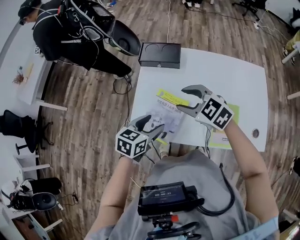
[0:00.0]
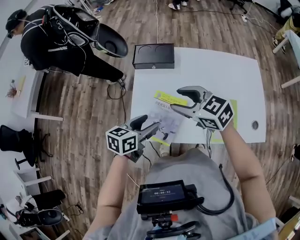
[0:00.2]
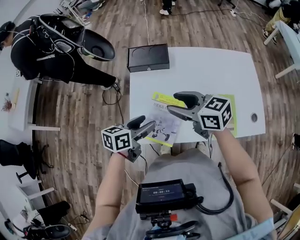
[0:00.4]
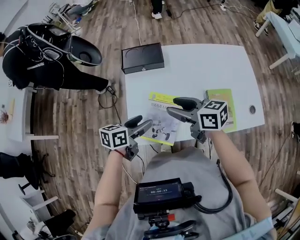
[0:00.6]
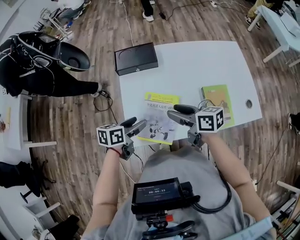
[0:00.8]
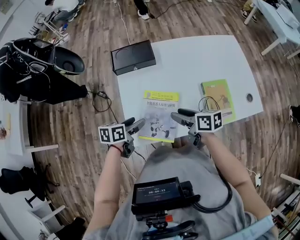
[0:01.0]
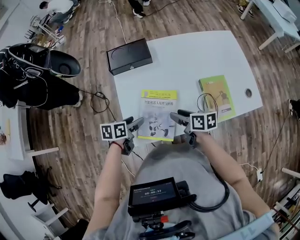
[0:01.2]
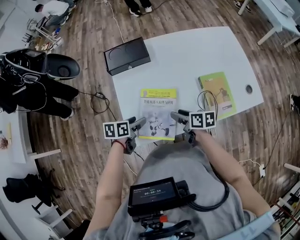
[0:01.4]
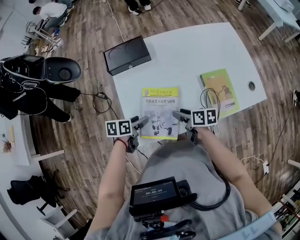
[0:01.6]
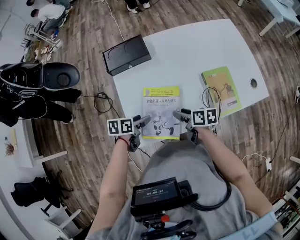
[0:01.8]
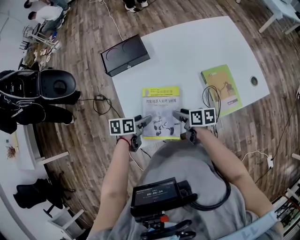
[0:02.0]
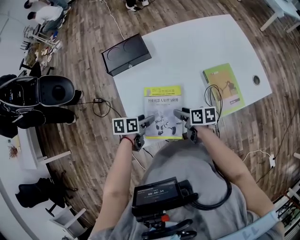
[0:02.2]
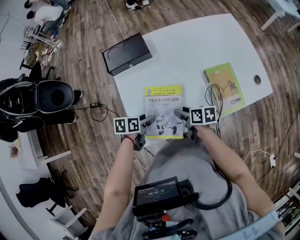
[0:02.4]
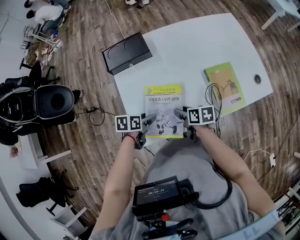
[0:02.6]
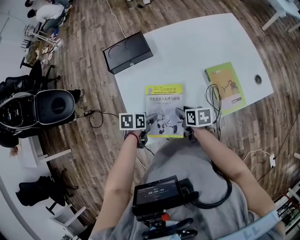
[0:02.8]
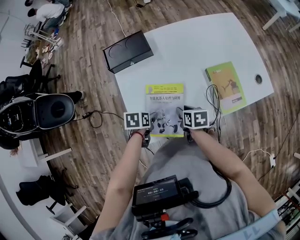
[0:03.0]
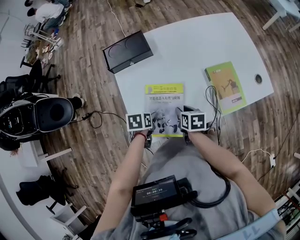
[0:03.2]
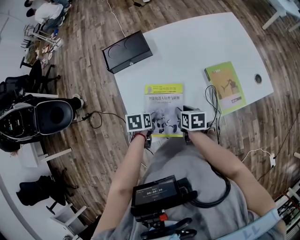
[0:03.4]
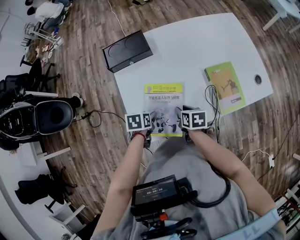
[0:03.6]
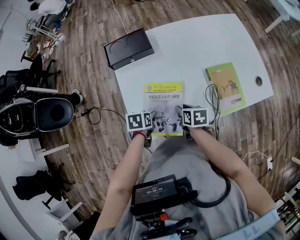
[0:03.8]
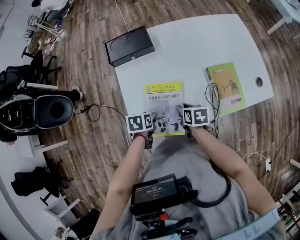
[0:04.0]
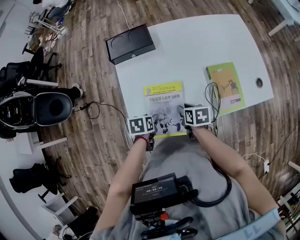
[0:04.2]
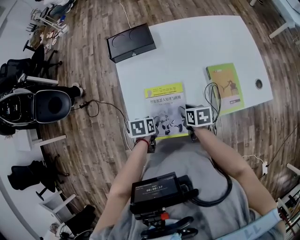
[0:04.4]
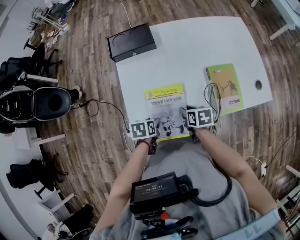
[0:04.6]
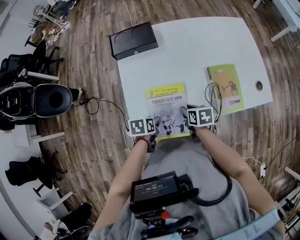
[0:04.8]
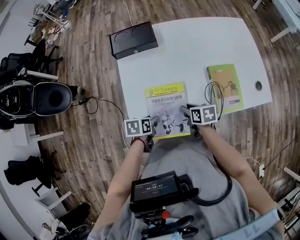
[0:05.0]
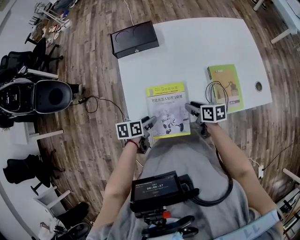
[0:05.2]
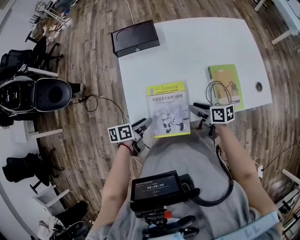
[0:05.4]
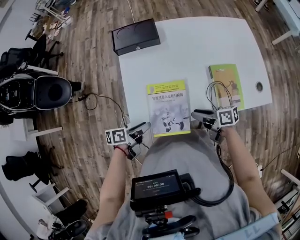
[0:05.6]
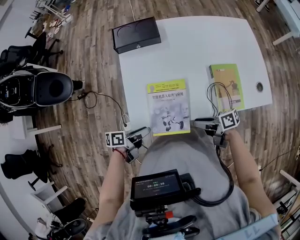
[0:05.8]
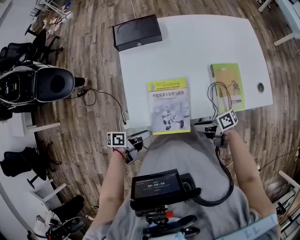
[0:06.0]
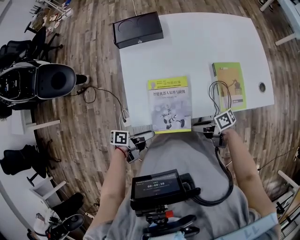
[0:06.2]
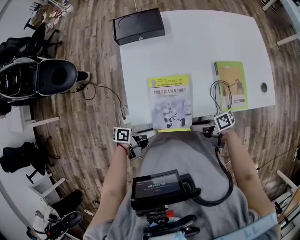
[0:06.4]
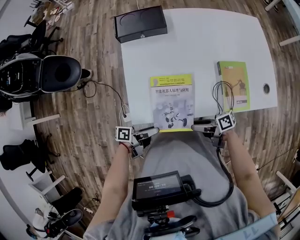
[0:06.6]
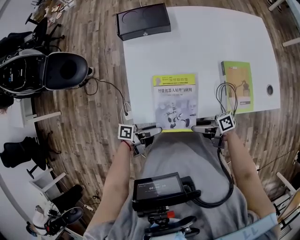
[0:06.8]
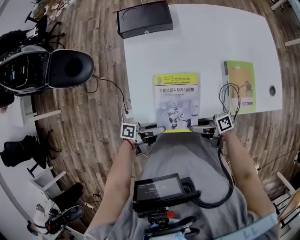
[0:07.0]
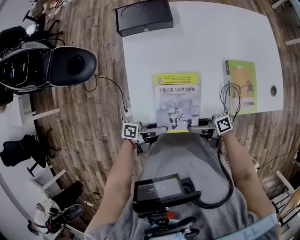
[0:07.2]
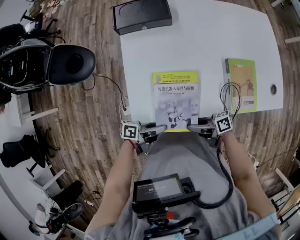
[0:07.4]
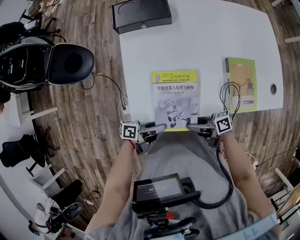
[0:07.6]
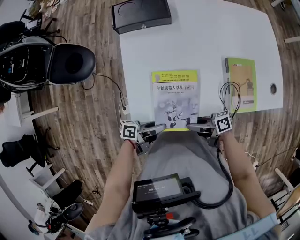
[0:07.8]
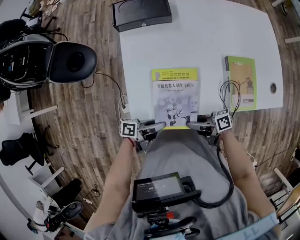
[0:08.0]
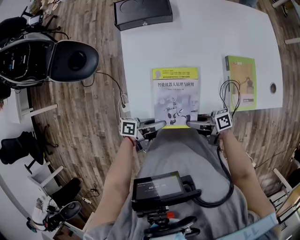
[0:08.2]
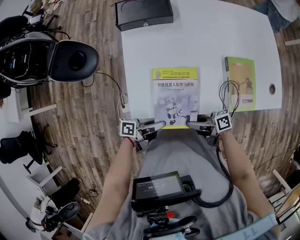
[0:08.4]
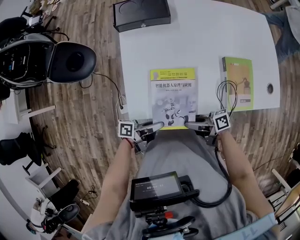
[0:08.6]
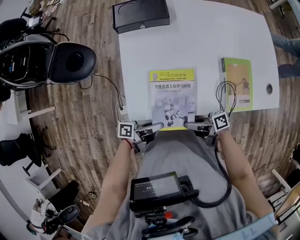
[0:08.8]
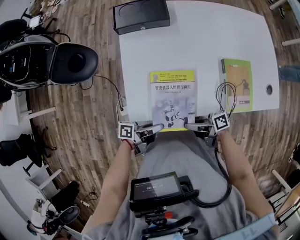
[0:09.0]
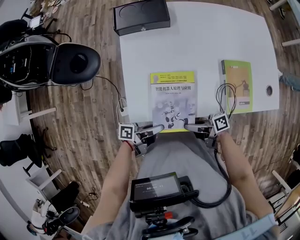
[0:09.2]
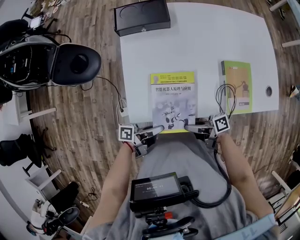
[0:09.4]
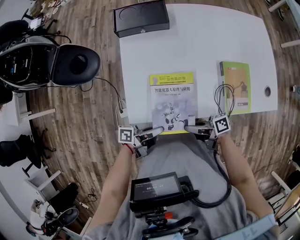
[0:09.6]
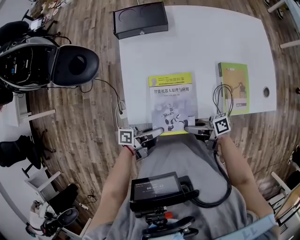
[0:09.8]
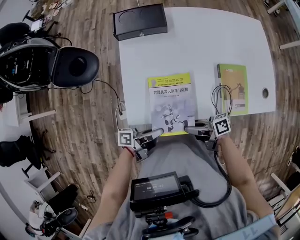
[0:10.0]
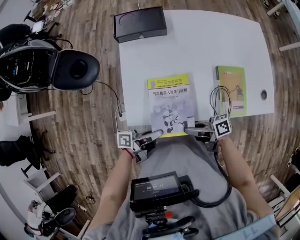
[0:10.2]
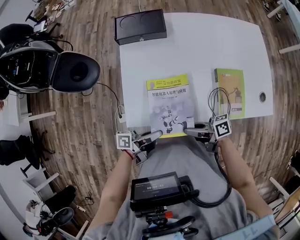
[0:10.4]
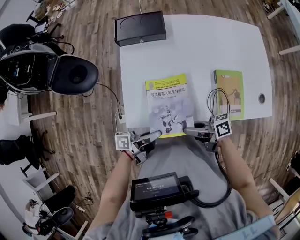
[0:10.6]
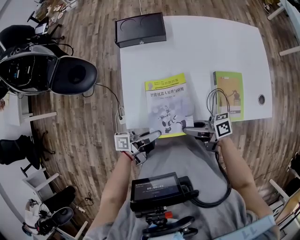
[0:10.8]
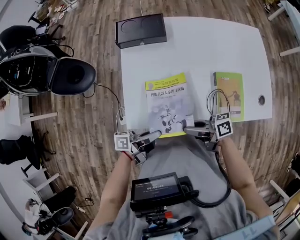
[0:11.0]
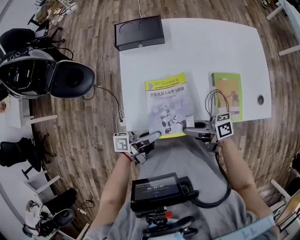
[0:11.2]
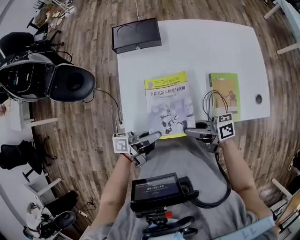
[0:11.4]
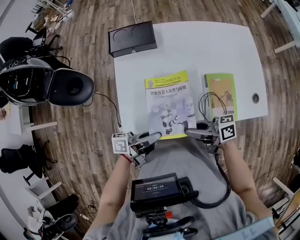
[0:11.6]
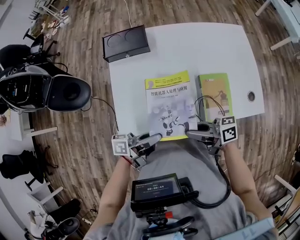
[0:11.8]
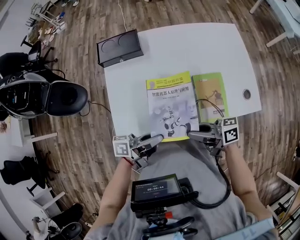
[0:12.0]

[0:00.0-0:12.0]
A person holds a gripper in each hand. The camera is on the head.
0:00.0 to 0:01.6: The grippers both shift downward by about 15 cm. The left gripper rotates approximately 30 degrees. Meanwhile the right gripper rolls clockwise, seen from behind, by some 90 degrees.
0:01.6 to 0:03.0: The left gripper turns by some 20 degrees; the right gripper rotates about 20 degrees.
0:03.0 to 0:04.4: The left gripper is displaced backward by some 5 cm.
0:04.4 to 0:06.0: The right gripper changes place by roughly 10 cm, and angles its fingers upward, by about 40 degrees. Meanwhile the left gripper ends up roughly 10 cm from where it was, and tips its fingers upward by some 40 degrees.
0:06.0 to 0:07.6: The right gripper changes place by approximately 10 cm. The left gripper moves some 5 cm.
0:07.6 to 0:09.0: The grippers stay close to where they were, moving slightly.
0:09.0 to 0:10.4: The grippers both shift upward by about 5 cm.
0:10.4 to 0:12.0: Both grippers move upward, approximately 10 cm.

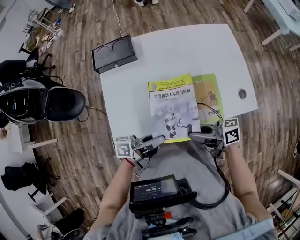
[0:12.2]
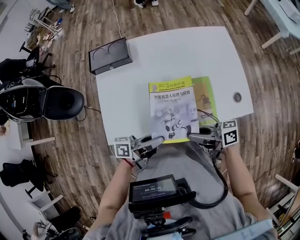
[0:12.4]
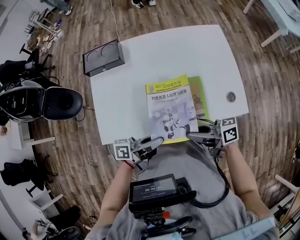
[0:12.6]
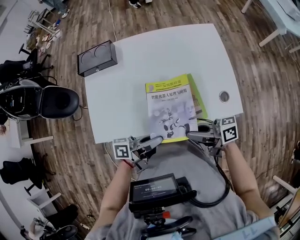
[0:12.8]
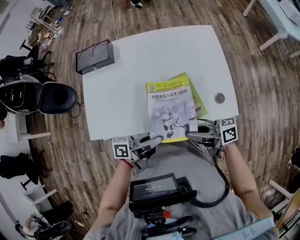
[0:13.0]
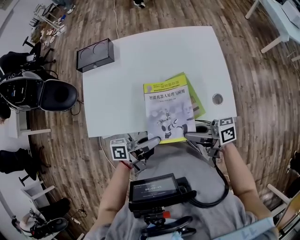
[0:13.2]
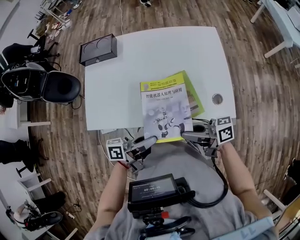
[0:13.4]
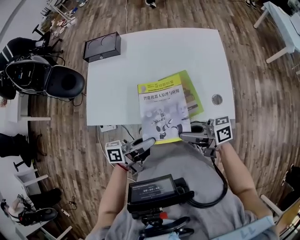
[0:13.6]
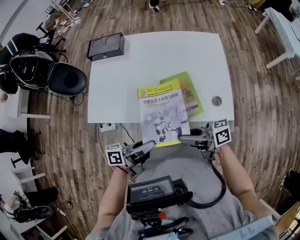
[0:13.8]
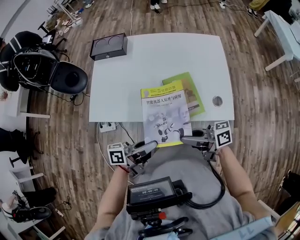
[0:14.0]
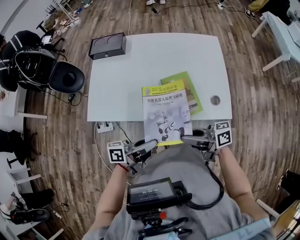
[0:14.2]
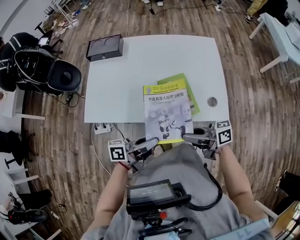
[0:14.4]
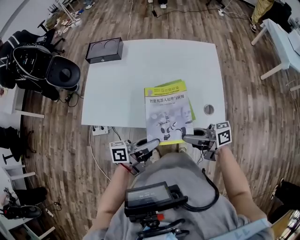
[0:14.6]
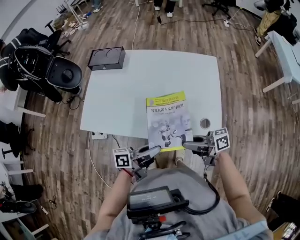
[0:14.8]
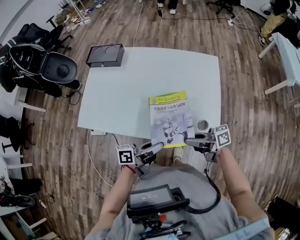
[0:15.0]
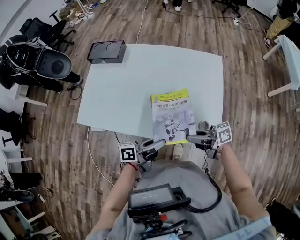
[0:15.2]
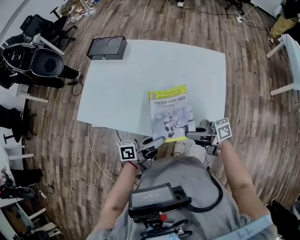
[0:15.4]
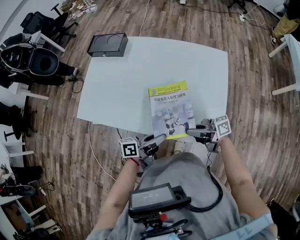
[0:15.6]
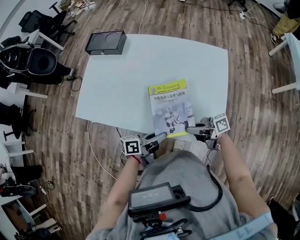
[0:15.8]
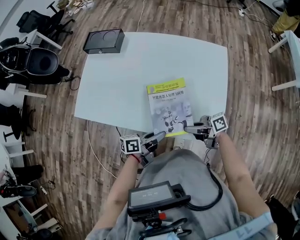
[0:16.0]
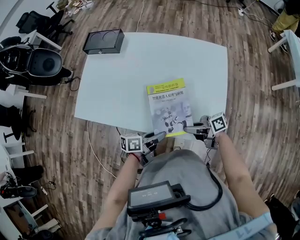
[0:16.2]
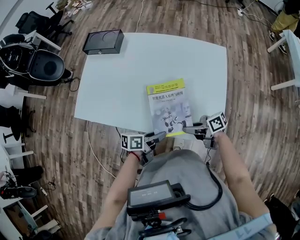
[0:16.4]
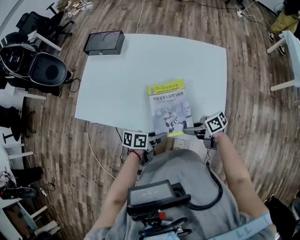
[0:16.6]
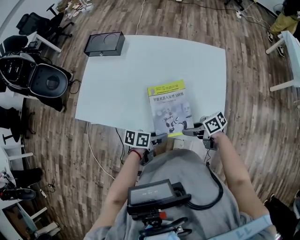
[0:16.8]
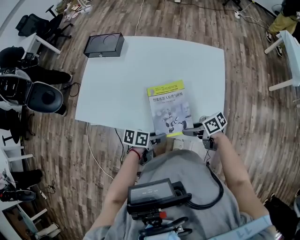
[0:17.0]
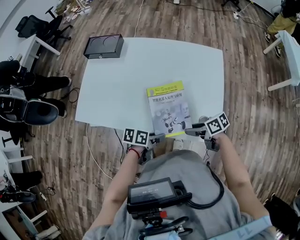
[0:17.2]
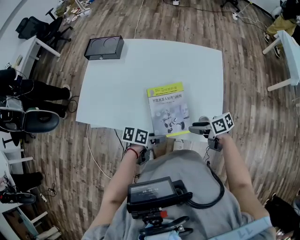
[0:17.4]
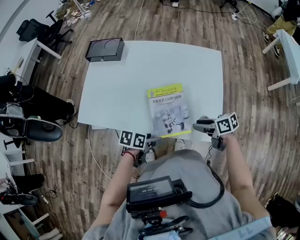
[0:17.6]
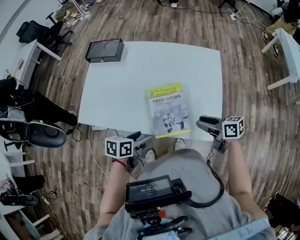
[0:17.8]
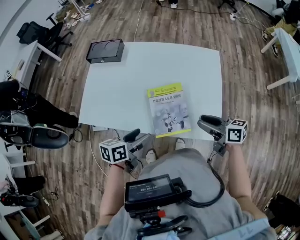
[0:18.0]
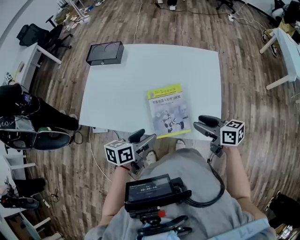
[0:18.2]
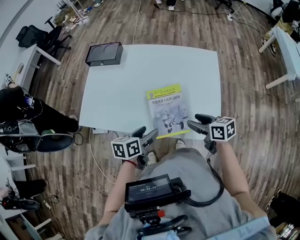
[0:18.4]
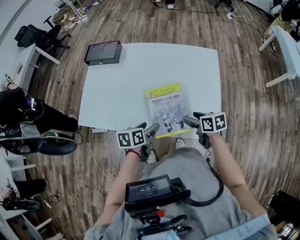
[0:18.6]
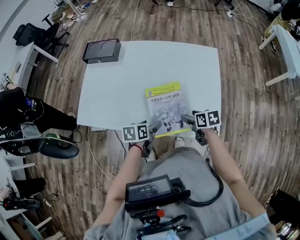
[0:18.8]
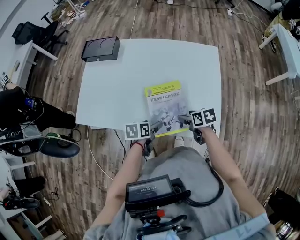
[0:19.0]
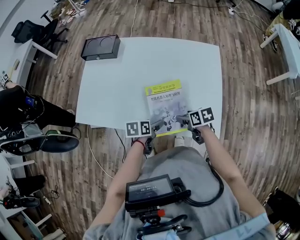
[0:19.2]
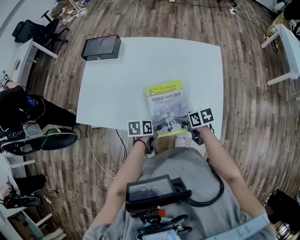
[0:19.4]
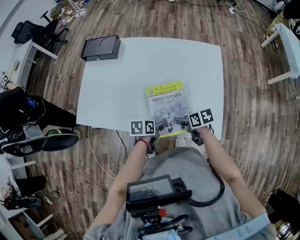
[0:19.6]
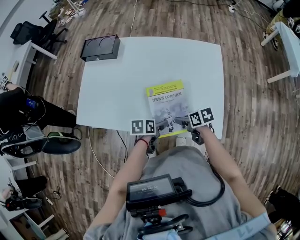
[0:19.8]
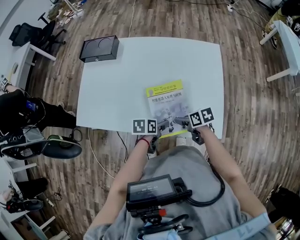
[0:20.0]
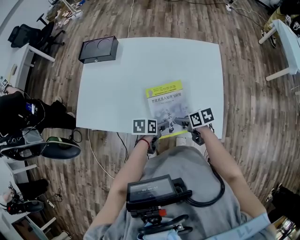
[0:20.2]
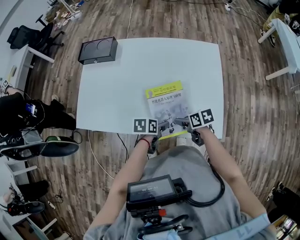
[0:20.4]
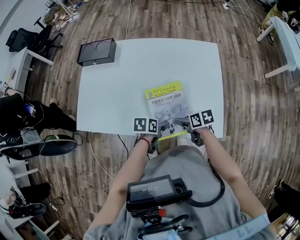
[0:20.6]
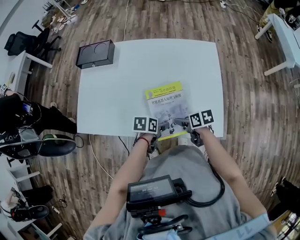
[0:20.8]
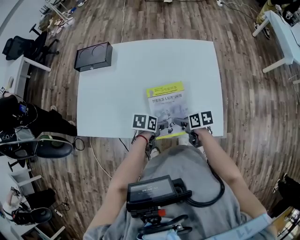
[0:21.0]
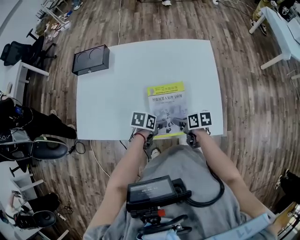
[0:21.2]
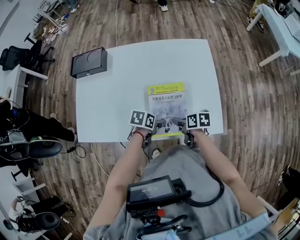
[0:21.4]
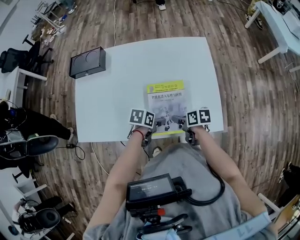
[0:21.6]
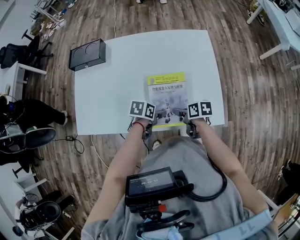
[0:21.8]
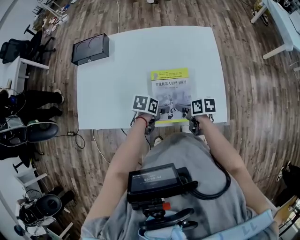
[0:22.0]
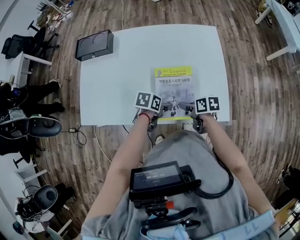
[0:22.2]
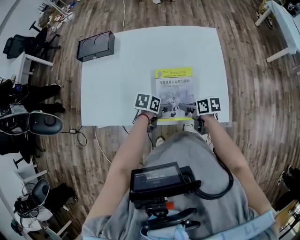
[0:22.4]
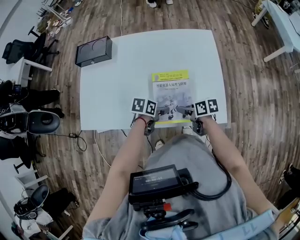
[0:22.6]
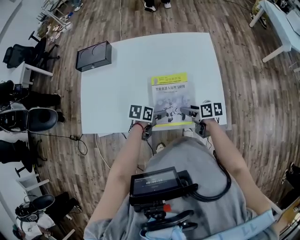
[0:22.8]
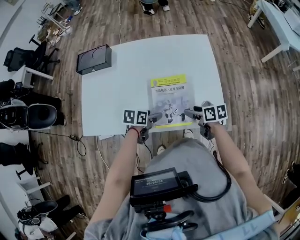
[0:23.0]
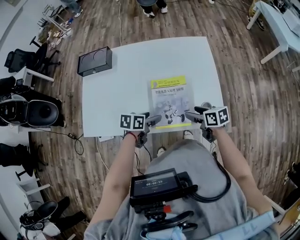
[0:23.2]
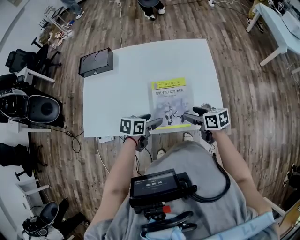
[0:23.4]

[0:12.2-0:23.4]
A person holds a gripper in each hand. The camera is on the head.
0:12.2 to 0:13.8: The left gripper shifts by approximately 20 cm. Meanwhile the right gripper ends up about 15 cm from where it was.
0:13.8 to 0:15.4: The right gripper moves approximately 15 cm, while the left gripper changes place by about 15 cm.
0:15.4 to 0:17.0: Both grippers travel together downward, some 10 cm. The right gripper tilts its fingers approximately 30 degrees downward; the left gripper points its fingers some 30 degrees further downward.
0:17.0 to 0:18.6: The right gripper reaches some 15 cm upward, then returns, and changes its angle by roughly 30 degrees. Meanwhile the left gripper rotates roughly 20 degrees, and opens its fingers.
0:18.6 to 0:20.2: The grippers both shift downward by about 5 cm.
0:20.2 to 0:21.8: The right gripper swivels some 20 degrees.
0:21.8 to 0:23.4: The grippers both shift upward by approximately 10 cm. The right gripper swivels roughly 30 degrees.
